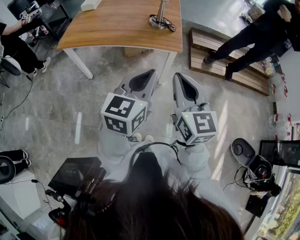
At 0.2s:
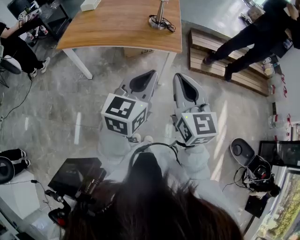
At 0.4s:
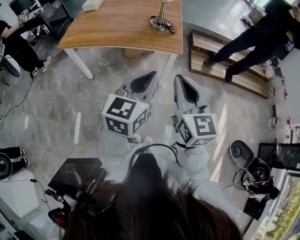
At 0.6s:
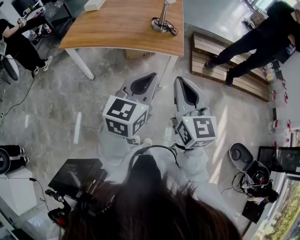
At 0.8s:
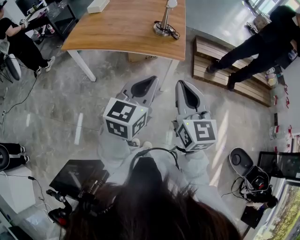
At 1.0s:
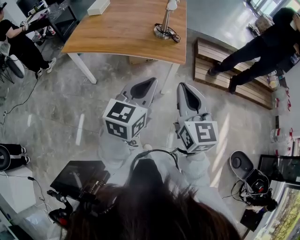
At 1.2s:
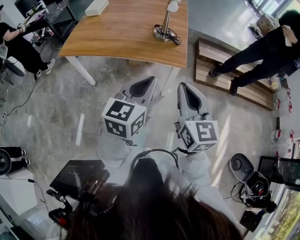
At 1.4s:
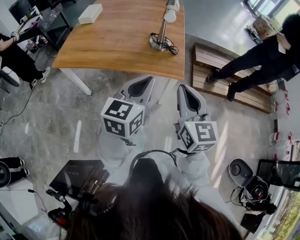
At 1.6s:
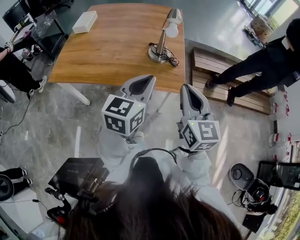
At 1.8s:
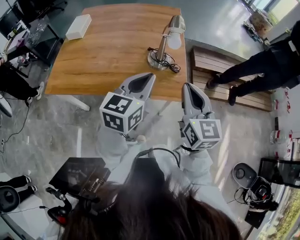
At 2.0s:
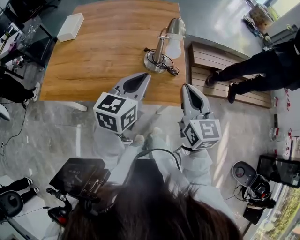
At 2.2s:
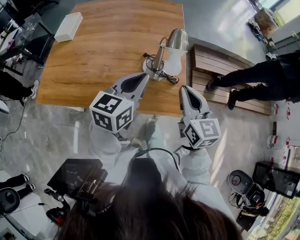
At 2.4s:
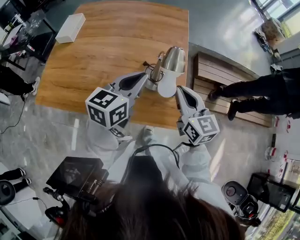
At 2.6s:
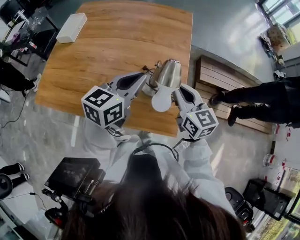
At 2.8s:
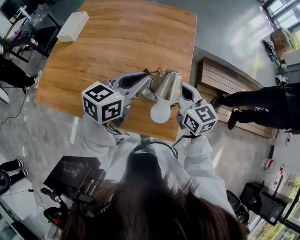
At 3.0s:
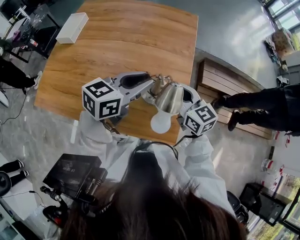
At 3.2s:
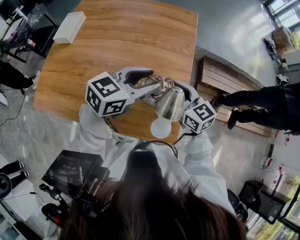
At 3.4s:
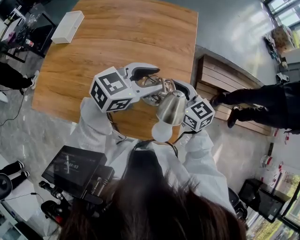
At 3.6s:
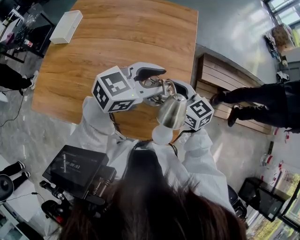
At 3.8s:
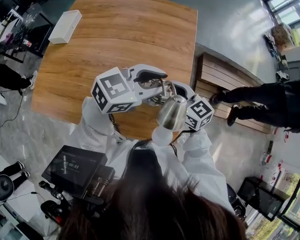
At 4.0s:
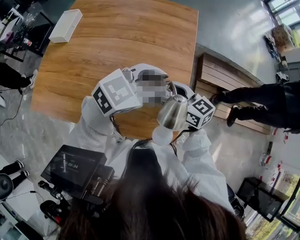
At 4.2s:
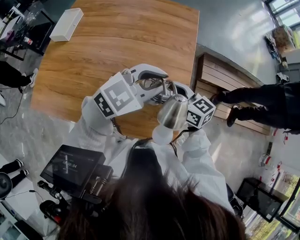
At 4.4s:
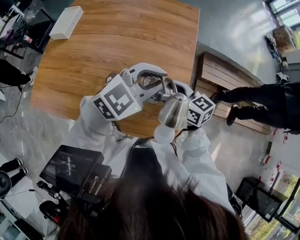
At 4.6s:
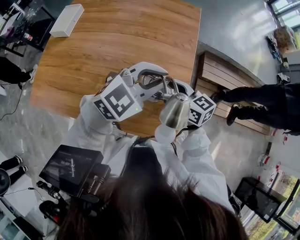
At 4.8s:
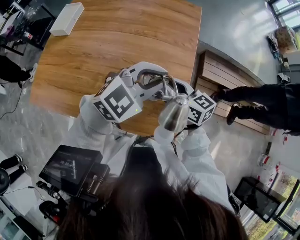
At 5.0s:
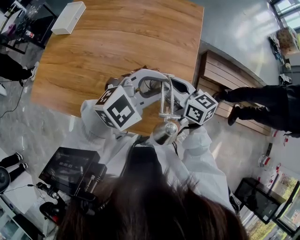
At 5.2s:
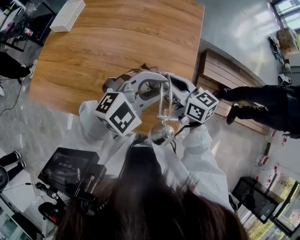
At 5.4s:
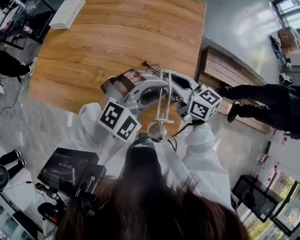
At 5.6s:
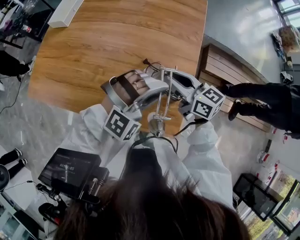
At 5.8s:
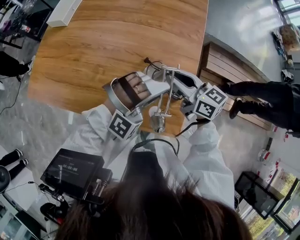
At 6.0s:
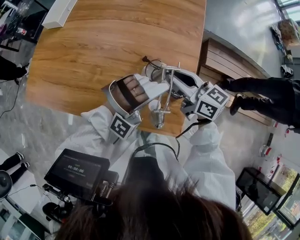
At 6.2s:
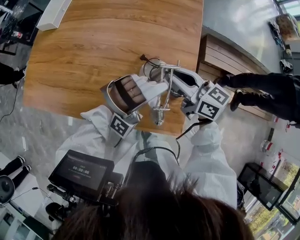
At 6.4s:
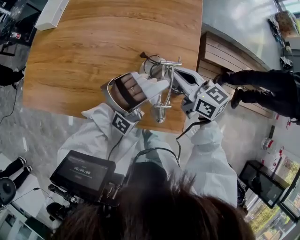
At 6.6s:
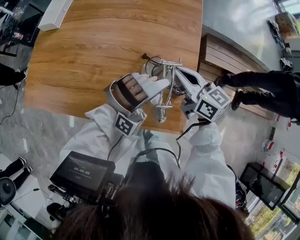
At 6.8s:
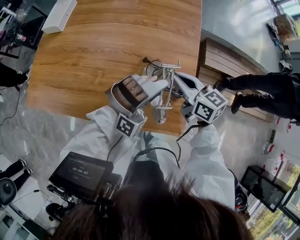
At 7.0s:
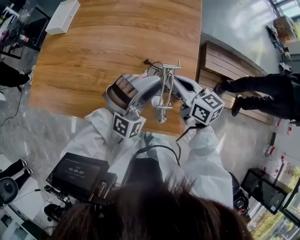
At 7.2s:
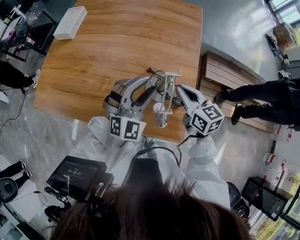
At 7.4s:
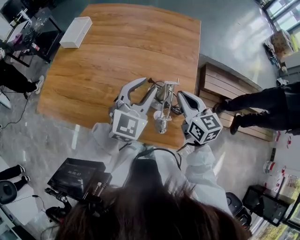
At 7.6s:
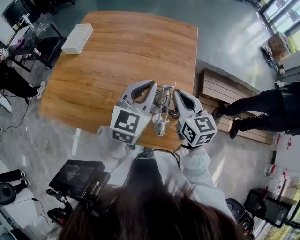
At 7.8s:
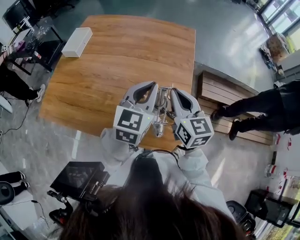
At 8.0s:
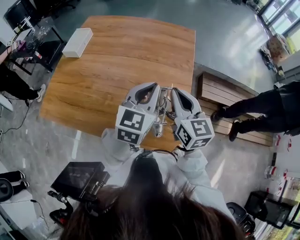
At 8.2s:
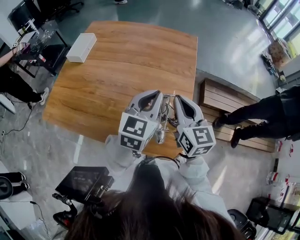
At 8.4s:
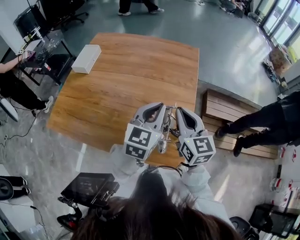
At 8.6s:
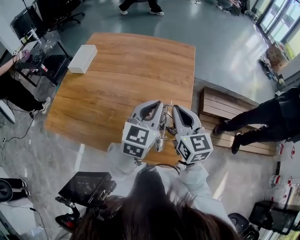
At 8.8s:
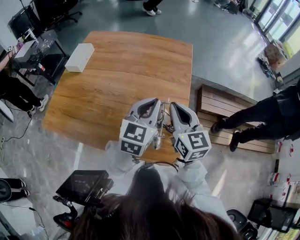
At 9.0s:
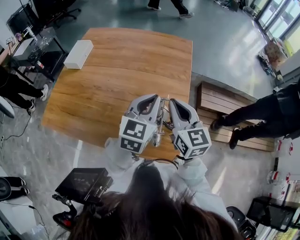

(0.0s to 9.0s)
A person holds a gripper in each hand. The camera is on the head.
0.0s - 1.6s: Both grippers travel together forward, some 30 cm.
1.6s - 3.0s: Both grippers move forward, approximately 40 cm. The right gripper swivels roughly 30 degrees. The left gripper swivels roughly 20 degrees.
3.0s - 4.4s: The left gripper moves to the right, about 5 cm, changes its angle by about 40 degrees, and opens and closes again. Meanwhile the right gripper ends up roughly 5 cm from where it was.
4.4s - 6.0s: The left gripper goes roughly 10 cm downward and backward, and twists roughly 70 degrees clockwise, seen from behind.
6.0s - 7.6s: The right gripper shifts some 10 cm upward, and swivels roughly 30 degrees; the left gripper is displaced upward and to the left by about 10 cm, rotates around the line of its fingers by roughly 80 degrees, counterclockwise from behind, and closes its fingers.
7.6s - 9.0s: The grippers move only a little.

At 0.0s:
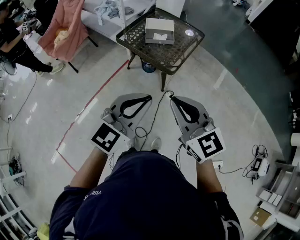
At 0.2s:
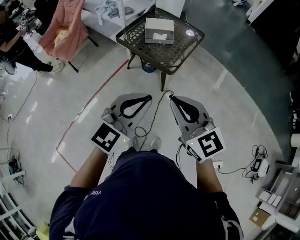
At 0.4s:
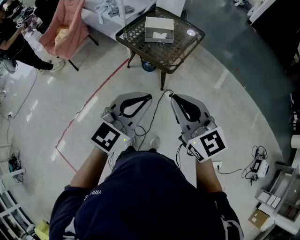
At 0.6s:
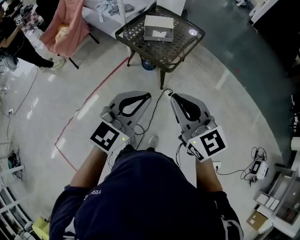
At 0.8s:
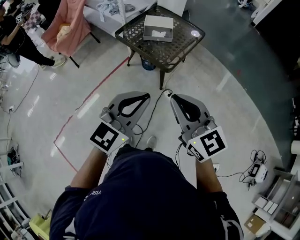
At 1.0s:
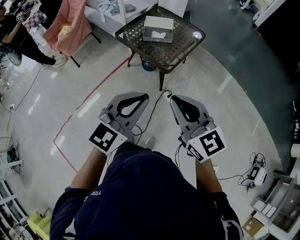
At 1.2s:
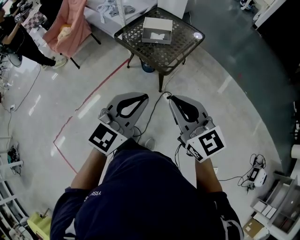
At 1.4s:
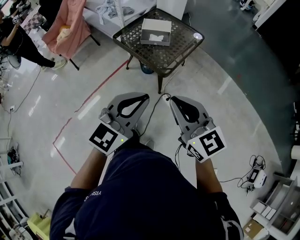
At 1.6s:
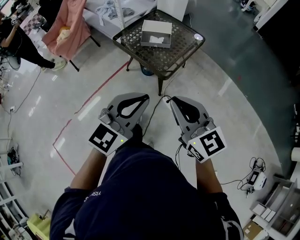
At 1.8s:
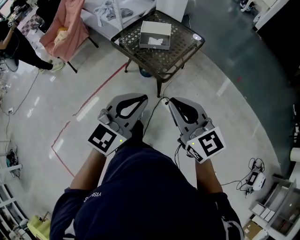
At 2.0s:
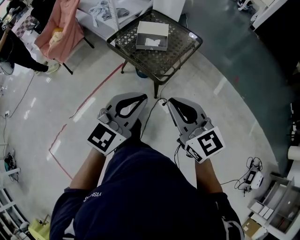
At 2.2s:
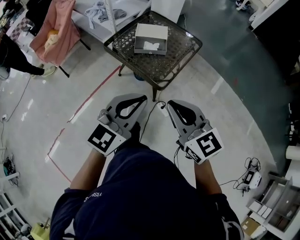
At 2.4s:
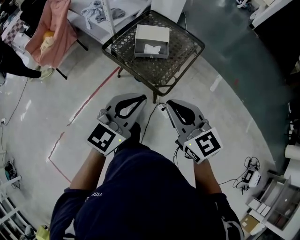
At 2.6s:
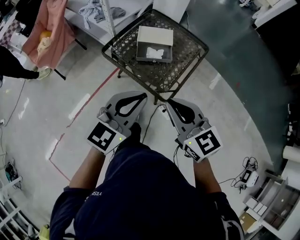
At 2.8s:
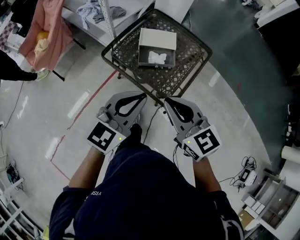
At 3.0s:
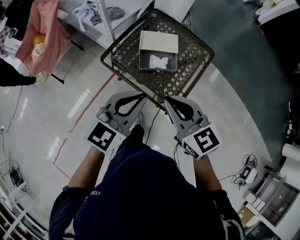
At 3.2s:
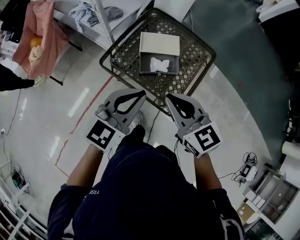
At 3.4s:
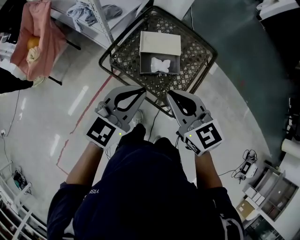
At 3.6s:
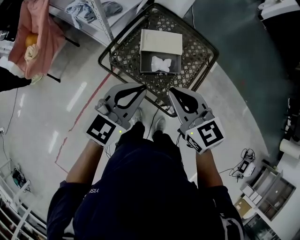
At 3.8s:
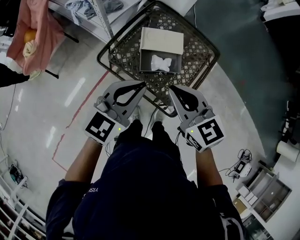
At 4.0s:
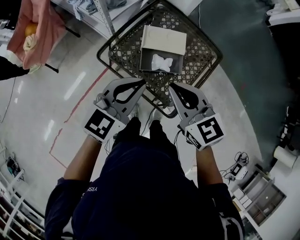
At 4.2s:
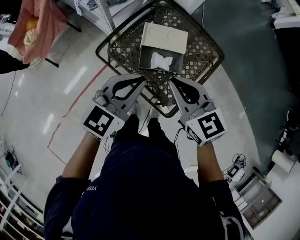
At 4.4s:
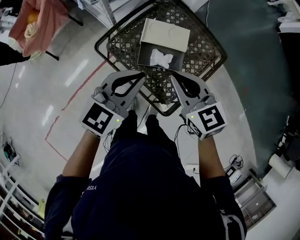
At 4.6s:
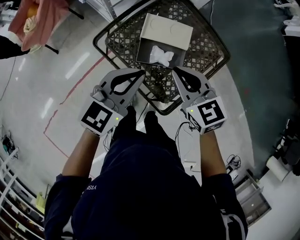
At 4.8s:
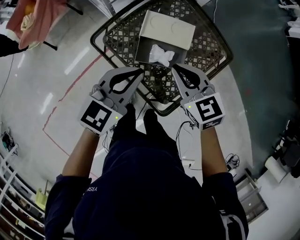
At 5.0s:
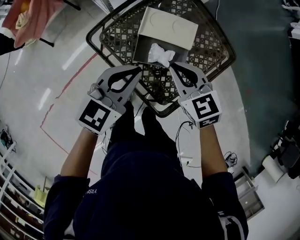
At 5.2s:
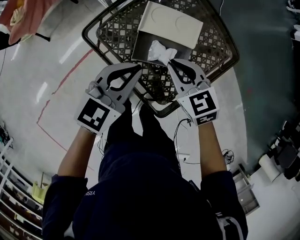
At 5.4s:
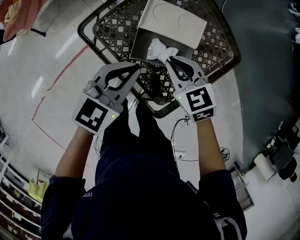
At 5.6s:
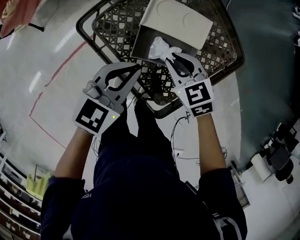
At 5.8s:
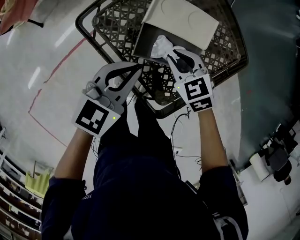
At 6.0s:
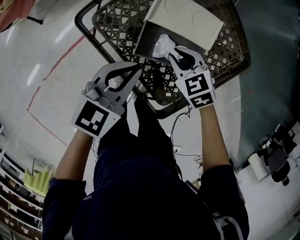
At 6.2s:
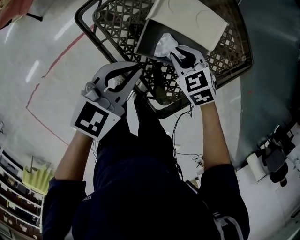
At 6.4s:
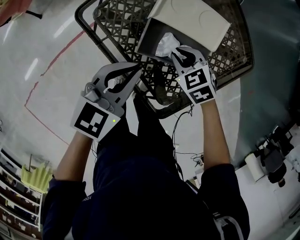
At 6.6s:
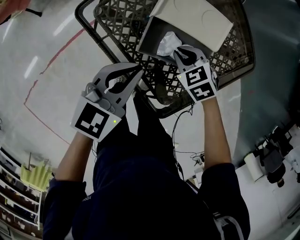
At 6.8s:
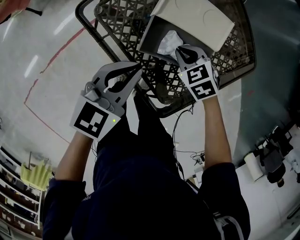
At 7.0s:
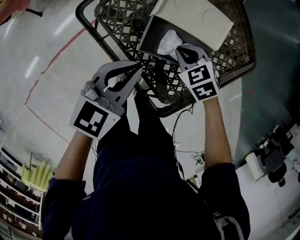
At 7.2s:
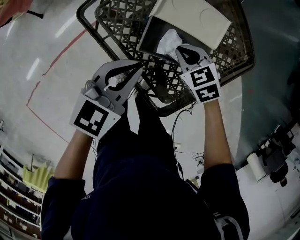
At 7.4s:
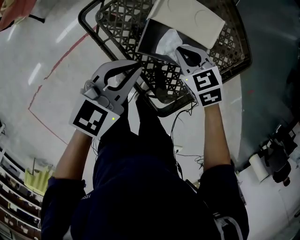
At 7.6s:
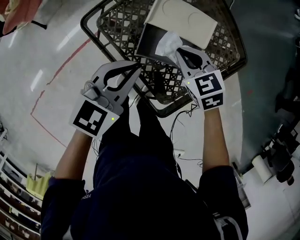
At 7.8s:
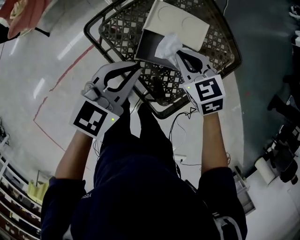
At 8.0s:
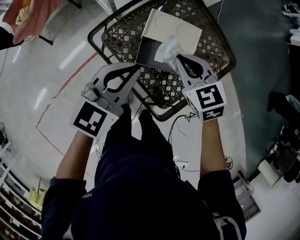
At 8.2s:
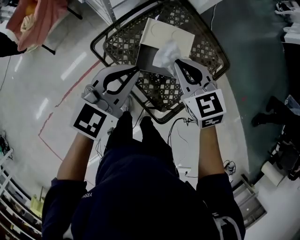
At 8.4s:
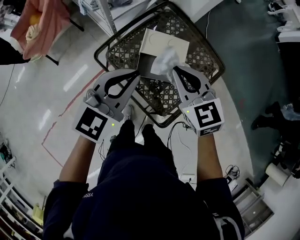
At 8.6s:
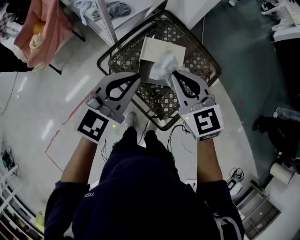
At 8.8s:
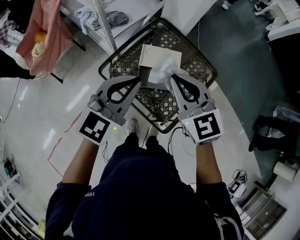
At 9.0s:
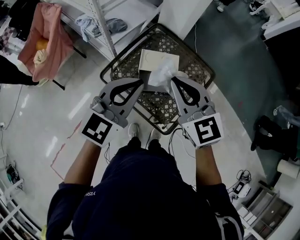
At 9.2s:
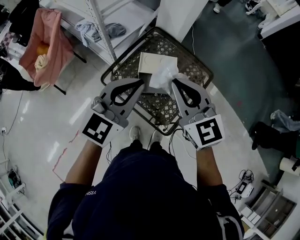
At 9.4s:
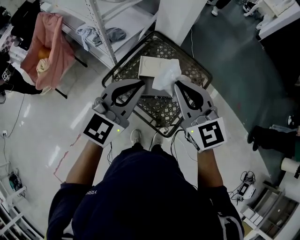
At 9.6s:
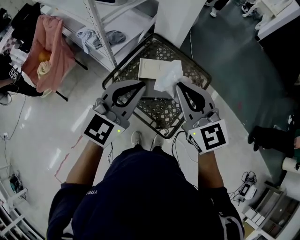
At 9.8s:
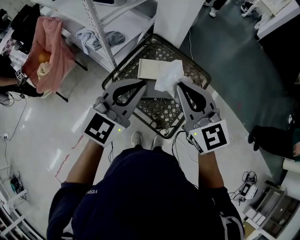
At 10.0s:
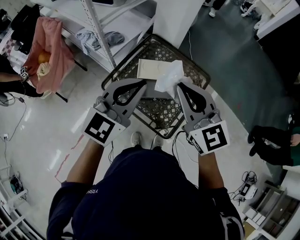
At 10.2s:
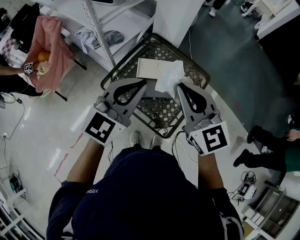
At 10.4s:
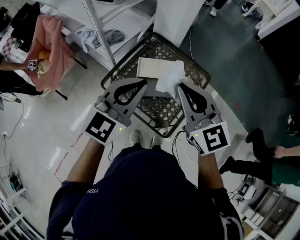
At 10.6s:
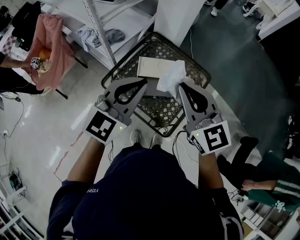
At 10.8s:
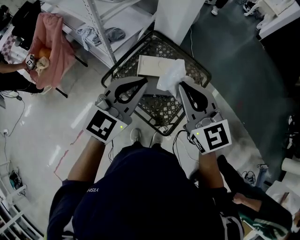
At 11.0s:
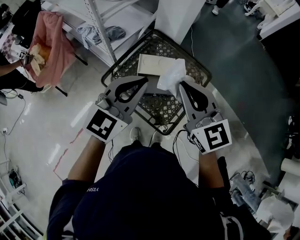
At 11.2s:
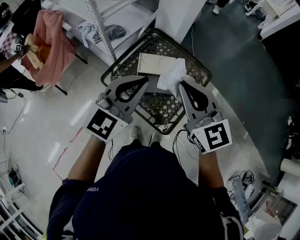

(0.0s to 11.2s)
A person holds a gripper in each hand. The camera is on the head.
0.0s - 1.6s: The right gripper shifts some 10 cm to the right and forward. The left gripper heads to the right, covering some 10 cm.
1.6s - 3.2s: The pair of grippers is taken forward, about 40 cm.
3.2s - 4.8s: The grippers both shift forward and downward by approximately 20 cm.
4.8s - 6.4s: The left gripper shifts roughly 15 cm downward, while the right gripper moves downward, some 25 cm, and rotates approximately 30 degrees.
6.4s - 8.0s: The two grippers go some 20 cm upward. The right gripper rotates approximately 30 degrees.
8.0s - 9.6s: The left gripper is displaced upward by about 25 cm, and swivels roughly 20 degrees. The right gripper travels upward and backward by about 30 cm, and points its fingers roughly 30 degrees further upward.
9.6s - 11.2s: The grippers stay close to where they were, moving slightly.

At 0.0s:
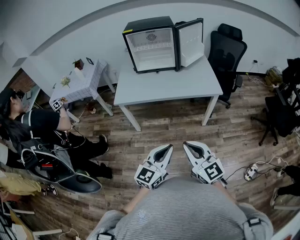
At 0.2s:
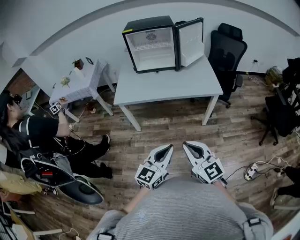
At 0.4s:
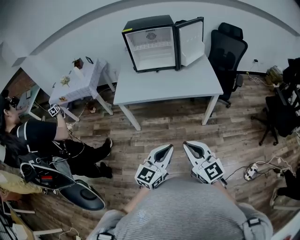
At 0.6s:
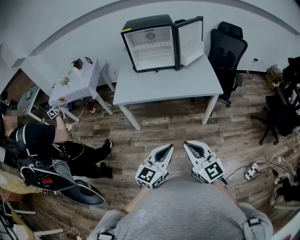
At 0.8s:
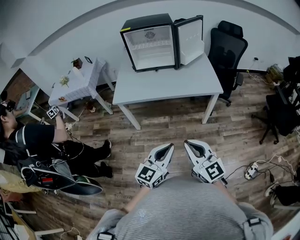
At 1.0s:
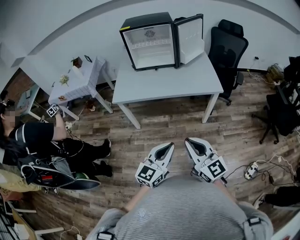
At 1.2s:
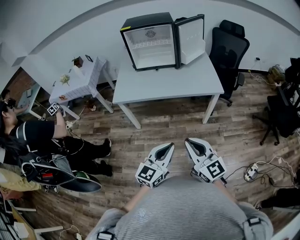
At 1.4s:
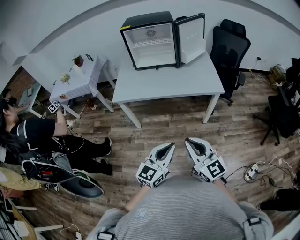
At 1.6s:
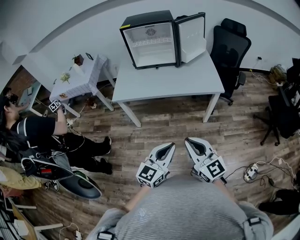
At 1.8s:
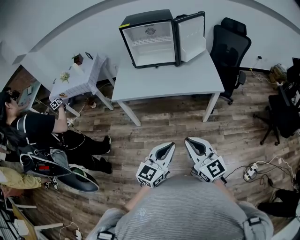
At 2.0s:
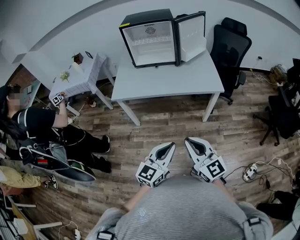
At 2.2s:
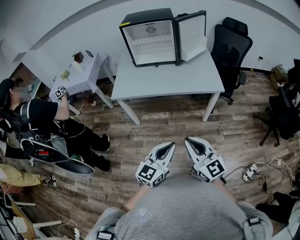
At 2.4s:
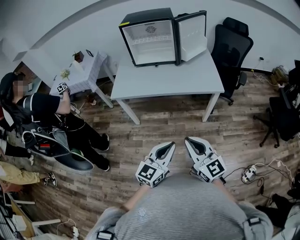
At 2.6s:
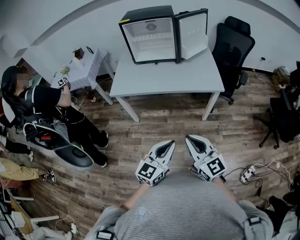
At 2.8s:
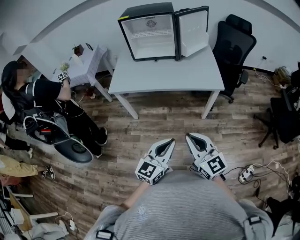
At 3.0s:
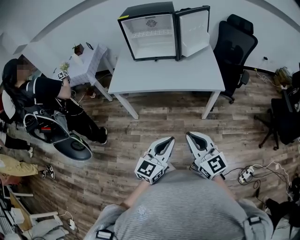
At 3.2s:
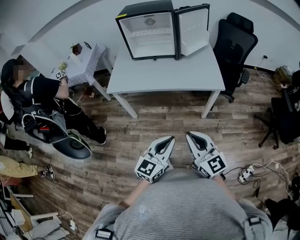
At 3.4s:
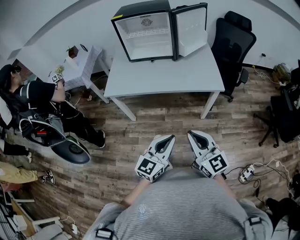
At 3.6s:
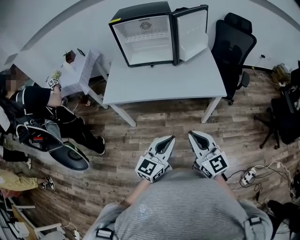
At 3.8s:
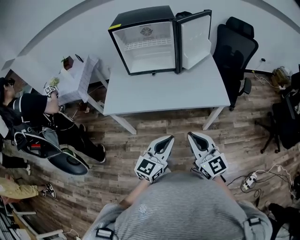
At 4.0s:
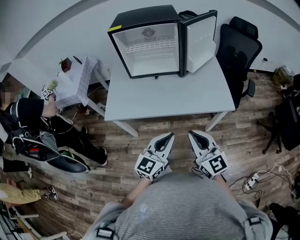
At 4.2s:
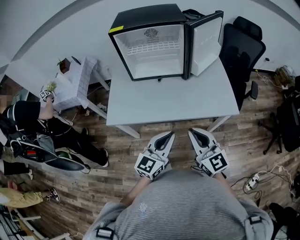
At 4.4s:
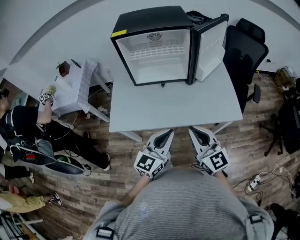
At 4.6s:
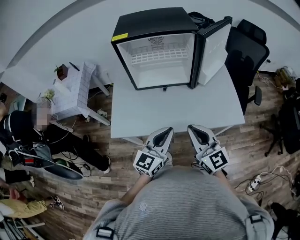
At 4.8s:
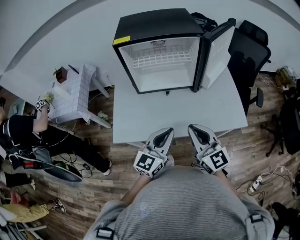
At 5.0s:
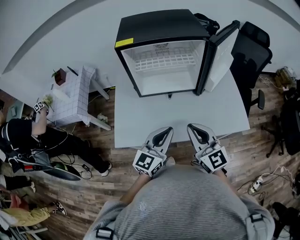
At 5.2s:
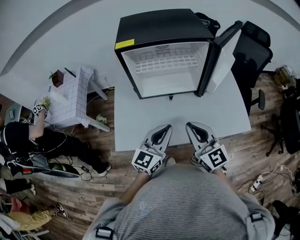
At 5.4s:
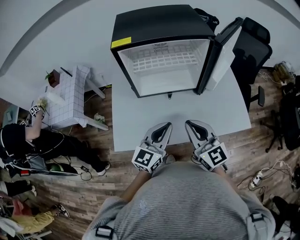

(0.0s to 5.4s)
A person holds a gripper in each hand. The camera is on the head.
0.0s - 1.4s: There are only small adjustments of the grippers.
1.4s - 2.8s: The two grippers go roughly 5 cm to the right.
2.8s - 4.0s: Both grippers move forward, roughly 25 cm.
4.0s - 5.4s: The two grippers go approximately 30 cm forward and to the left.
